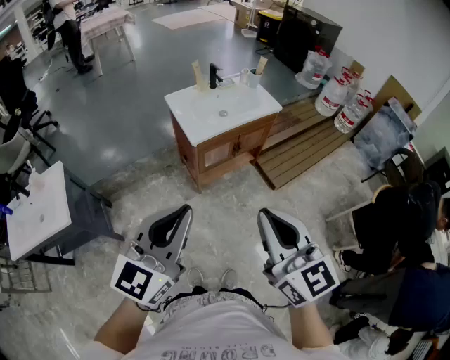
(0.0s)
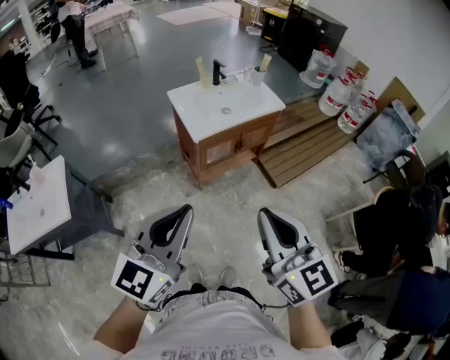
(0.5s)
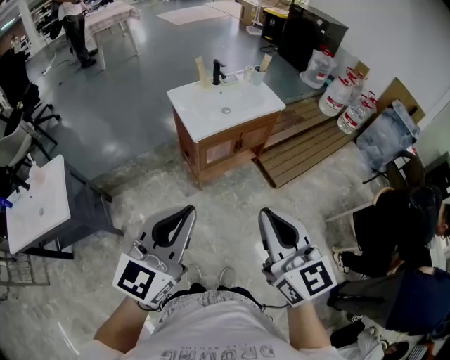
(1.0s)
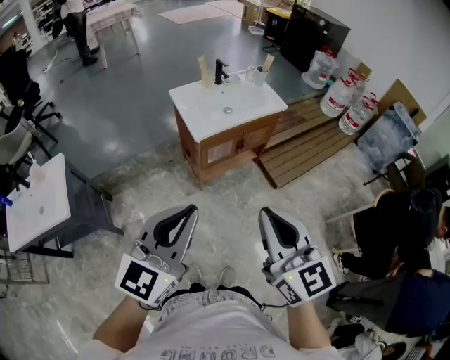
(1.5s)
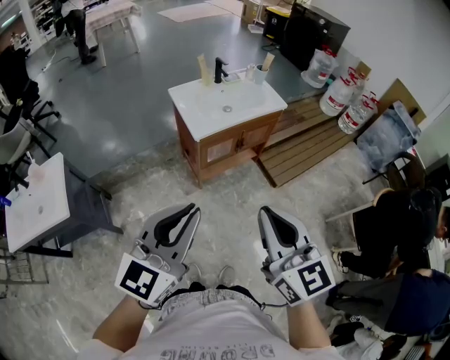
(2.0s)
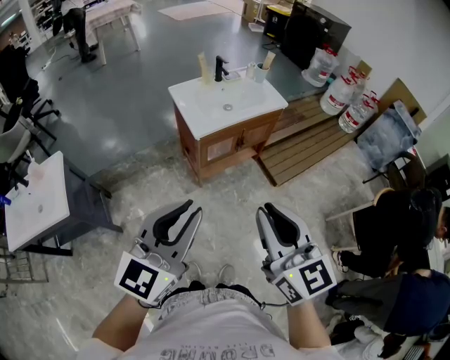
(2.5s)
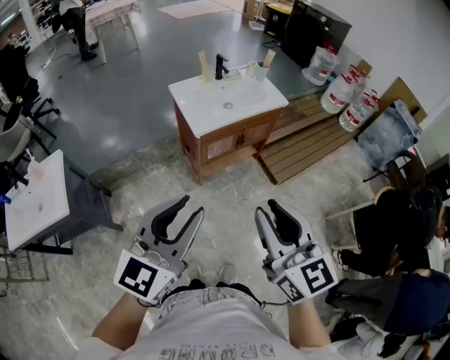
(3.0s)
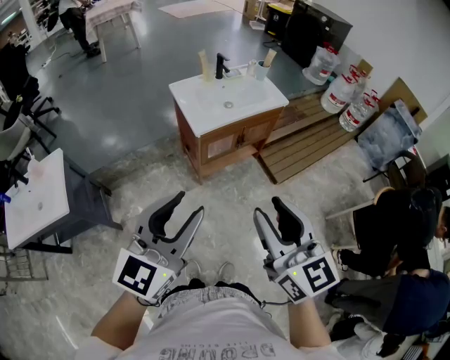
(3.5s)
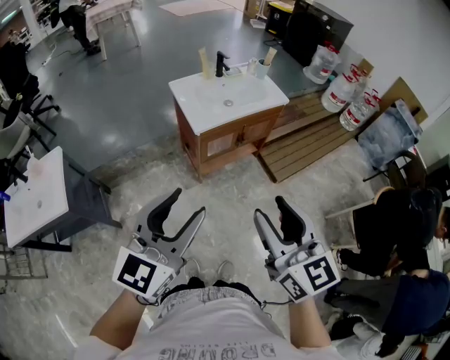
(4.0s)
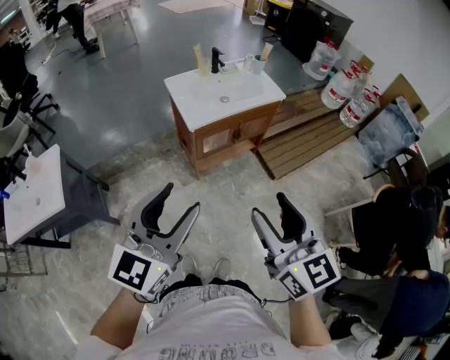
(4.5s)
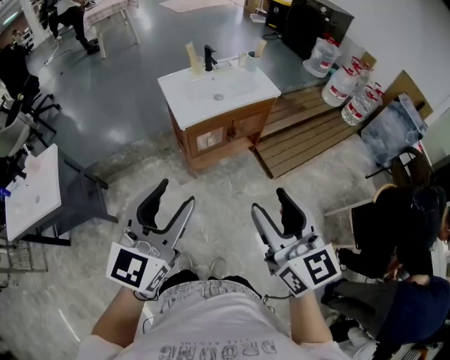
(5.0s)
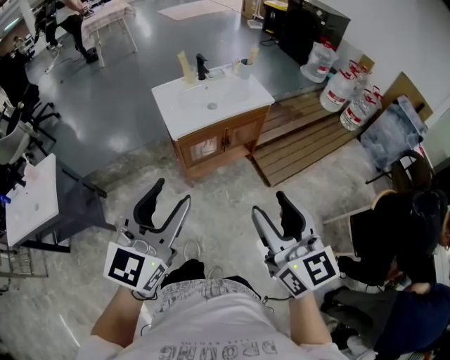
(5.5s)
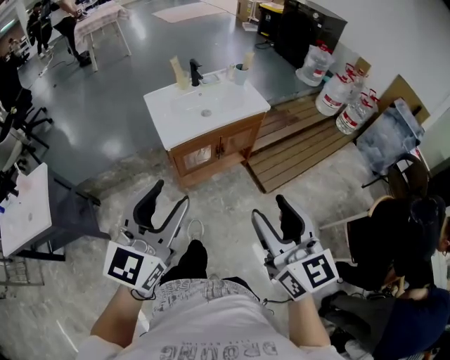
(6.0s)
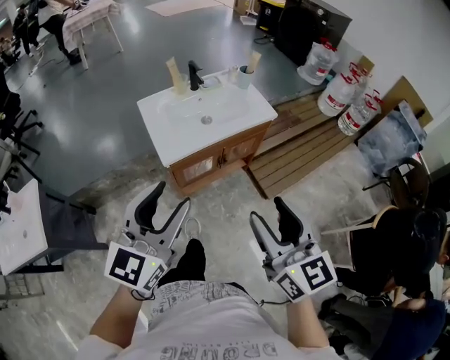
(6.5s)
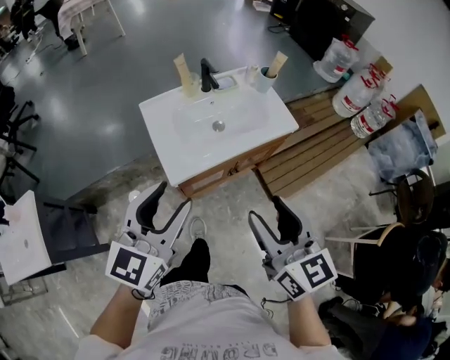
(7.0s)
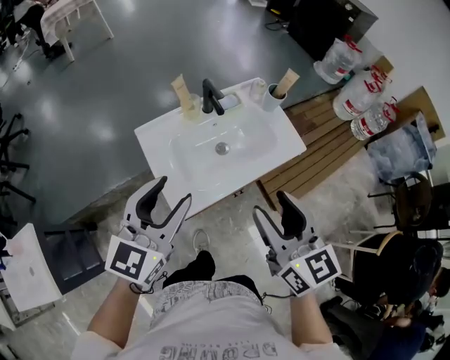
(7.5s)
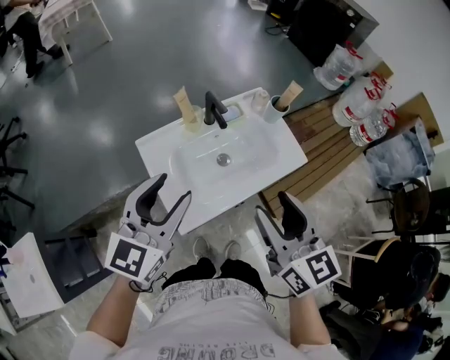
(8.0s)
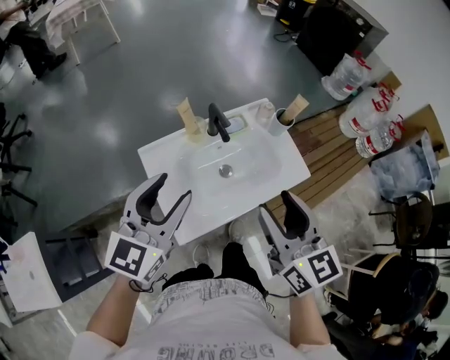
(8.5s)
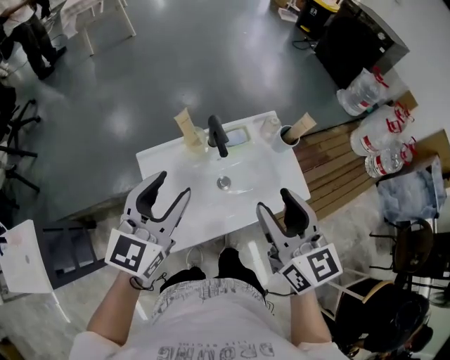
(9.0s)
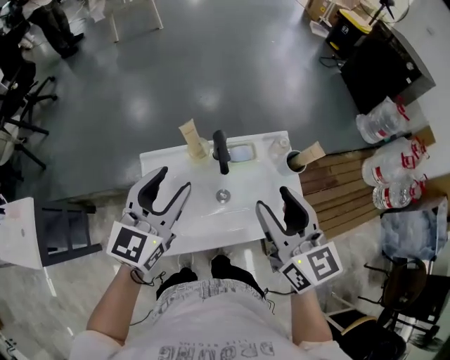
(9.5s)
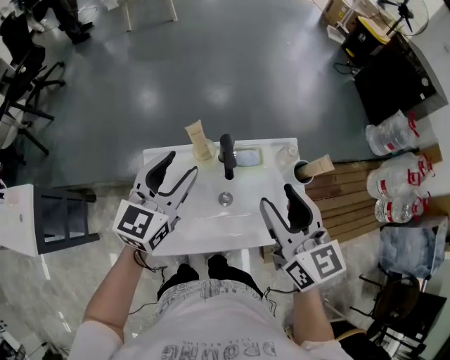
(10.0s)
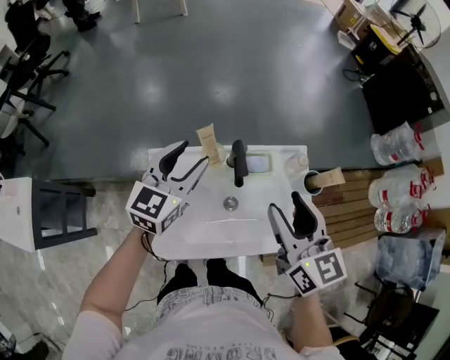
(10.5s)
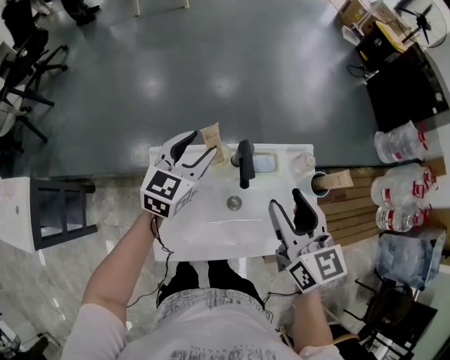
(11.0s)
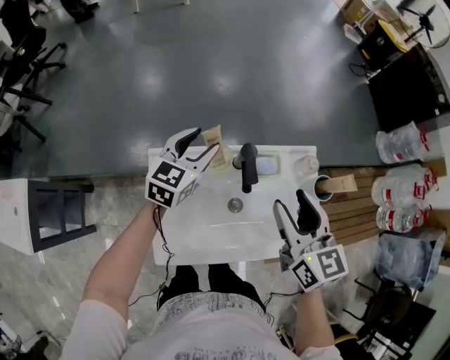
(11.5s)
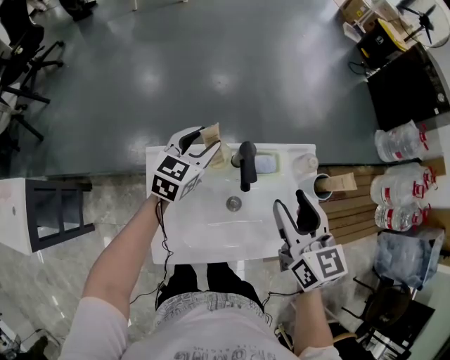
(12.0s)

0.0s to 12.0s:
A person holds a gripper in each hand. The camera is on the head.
0.0s to 2.0s: The grippers move only a little.
2.0s to 4.0s: The right gripper opens. Meanwhile the left gripper opens.
4.0s to 6.0s: Both grippers travel together to the right and forward, about 15 cm.
6.0s to 8.0s: The pair of grippers is taken forward, approximately 50 cm.
8.0s to 10.0s: Both grippers move forward, some 20 cm. The left gripper changes its angle by roughly 20 degrees. Meanwhile the right gripper turns by roughly 20 degrees.
10.0s to 12.0s: The right gripper goes roughly 10 cm downward, while the left gripper moves downward and forward, roughly 20 cm.

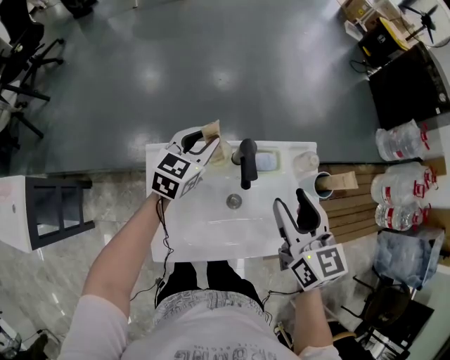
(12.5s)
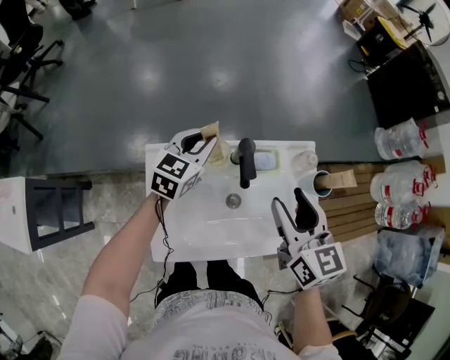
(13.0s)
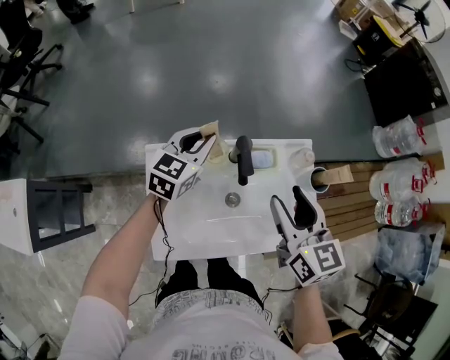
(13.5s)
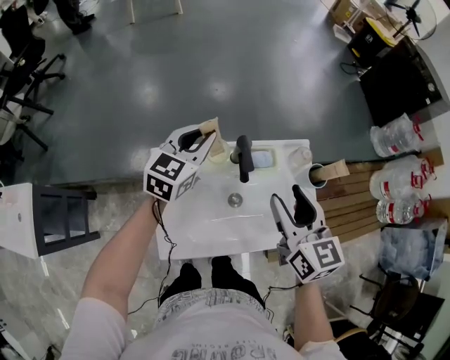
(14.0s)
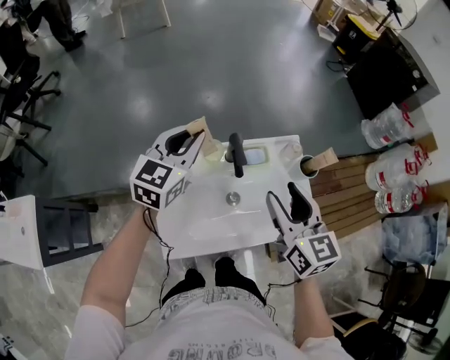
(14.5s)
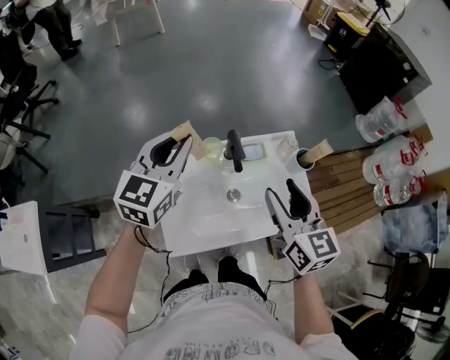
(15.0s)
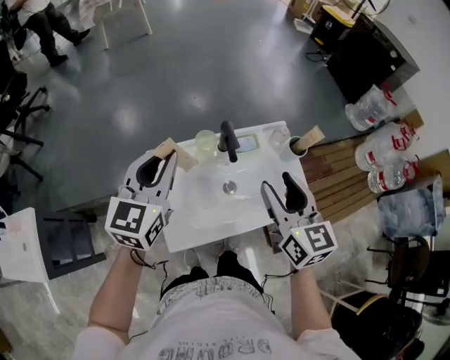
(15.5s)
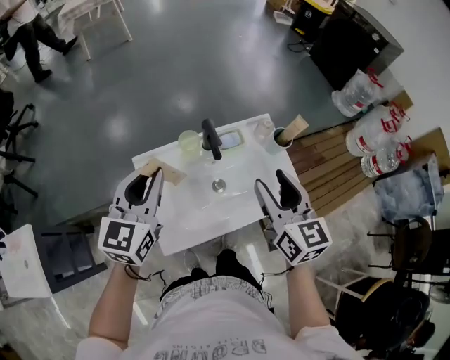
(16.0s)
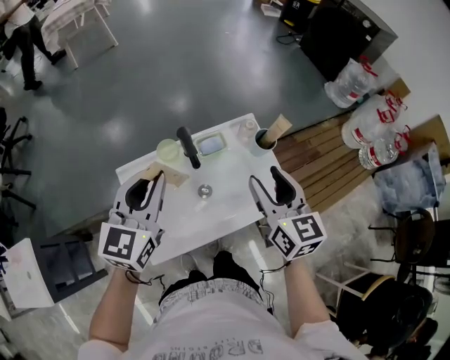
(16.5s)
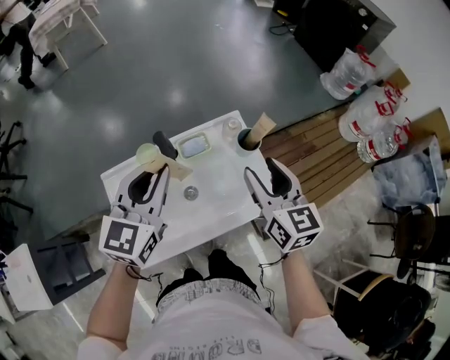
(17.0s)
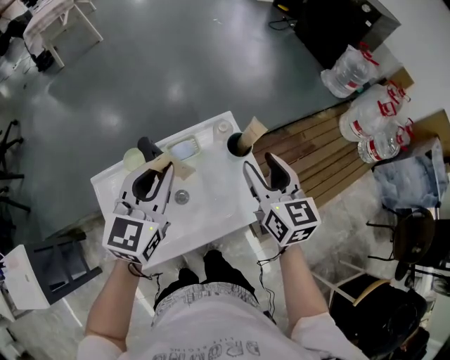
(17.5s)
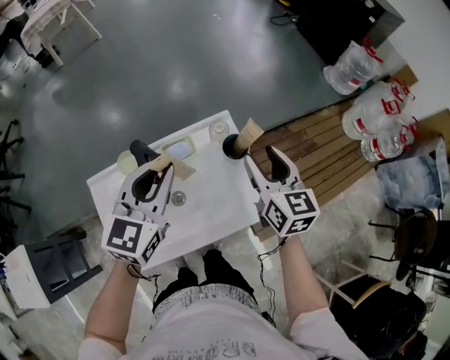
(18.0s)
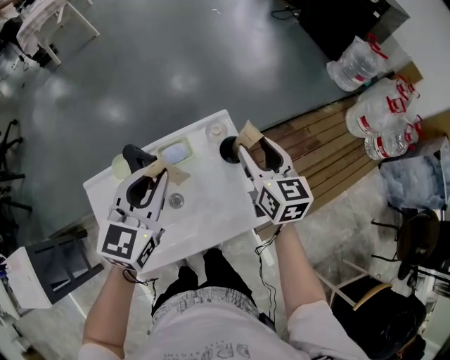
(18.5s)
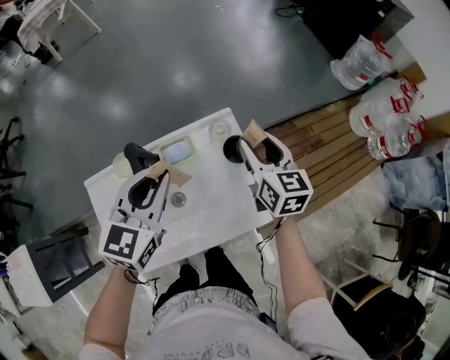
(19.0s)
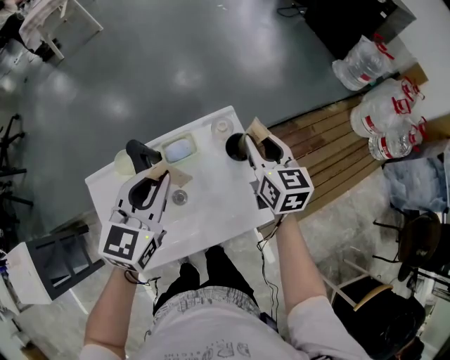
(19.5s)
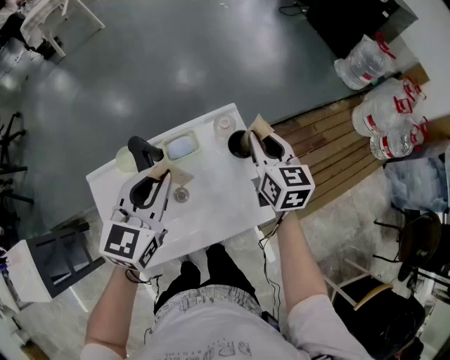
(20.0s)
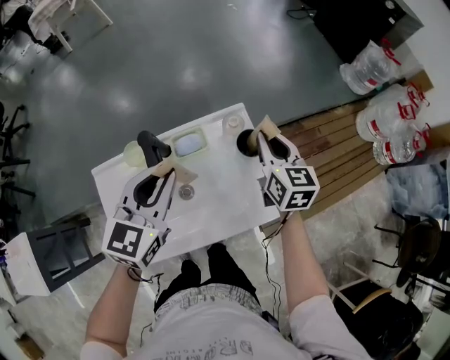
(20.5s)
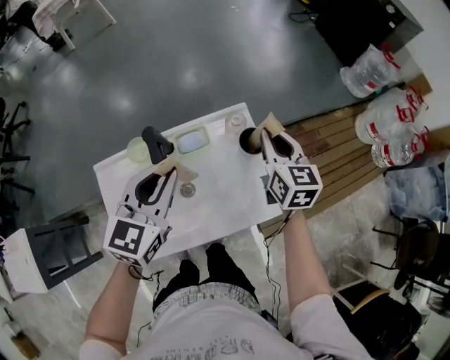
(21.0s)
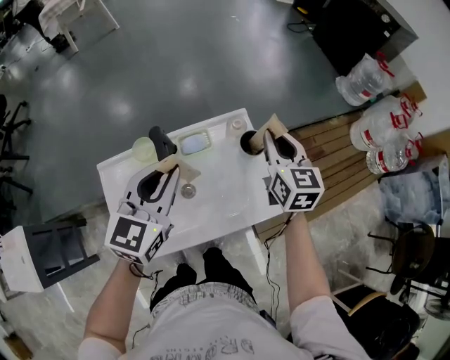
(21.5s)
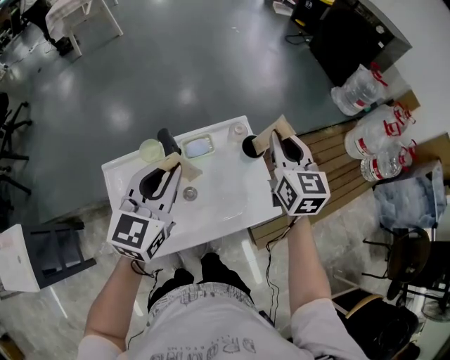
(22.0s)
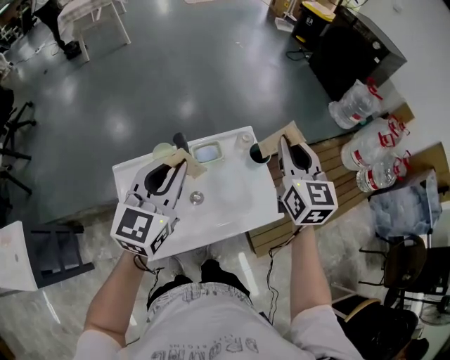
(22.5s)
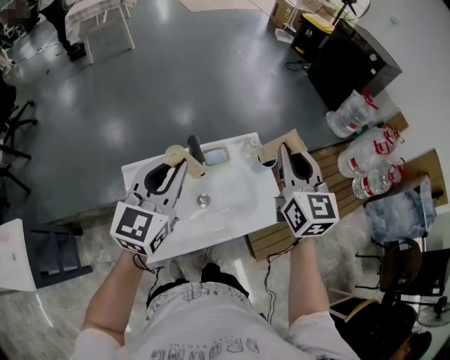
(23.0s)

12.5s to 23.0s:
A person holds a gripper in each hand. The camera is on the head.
12.5s to 14.5s: The left gripper moves upward, roughly 15 cm, while the right gripper travels backward by about 5 cm.
14.5s to 16.5s: The left gripper moves backward, about 10 cm; the right gripper heads to the right, covering about 10 cm.
16.5s to 19.0s: The right gripper travels forward, downward and to the right by roughly 25 cm, while the left gripper moves to the right, forward and downward, about 20 cm.
19.0s to 21.0s: The right gripper closes up.
21.0s to 23.0s: The left gripper is displaced upward, to the left and backward by roughly 15 cm; the right gripper shifts about 20 cm upward and backward.

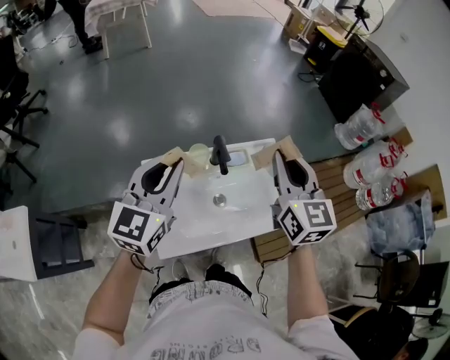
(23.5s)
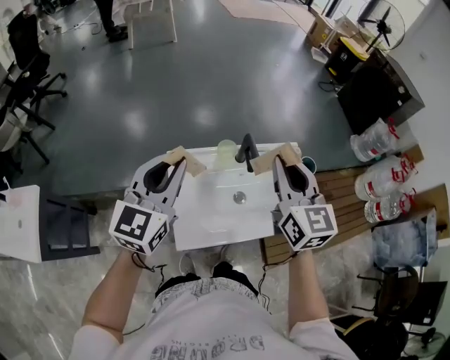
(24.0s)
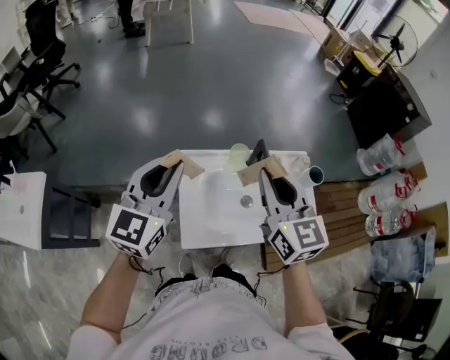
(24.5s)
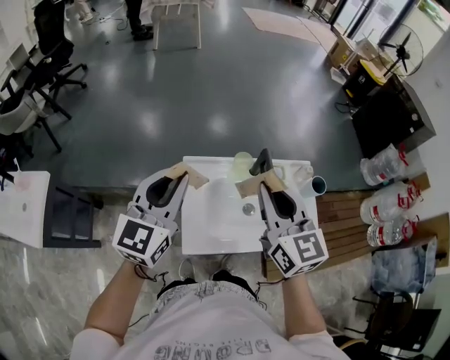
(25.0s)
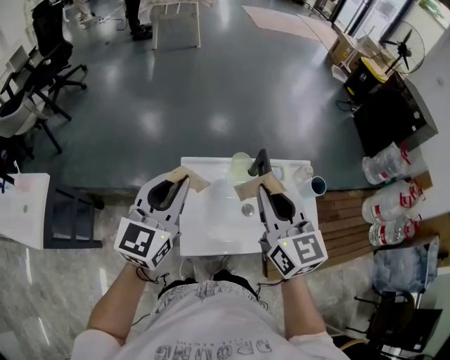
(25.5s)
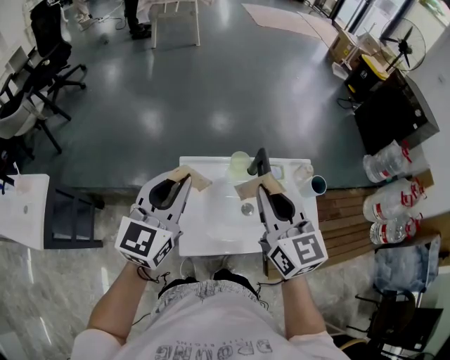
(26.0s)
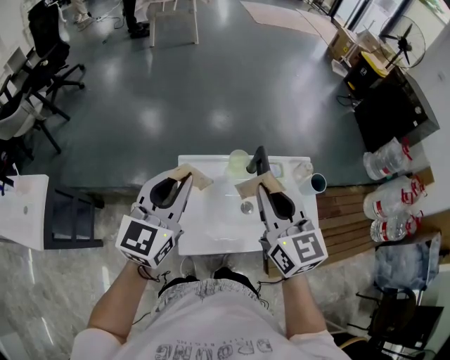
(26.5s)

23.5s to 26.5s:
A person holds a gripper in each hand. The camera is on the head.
23.5s to 25.0s: The left gripper shifts roughly 15 cm to the left and backward. The right gripper is displaced to the left by approximately 15 cm.
25.0s to 26.5s: The grippers move only a little.

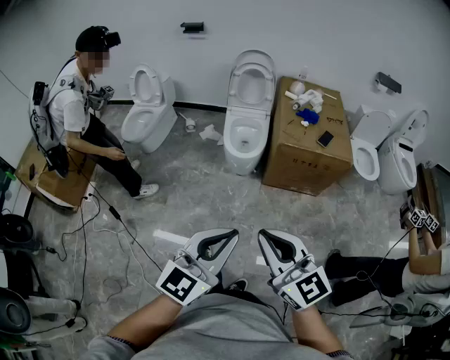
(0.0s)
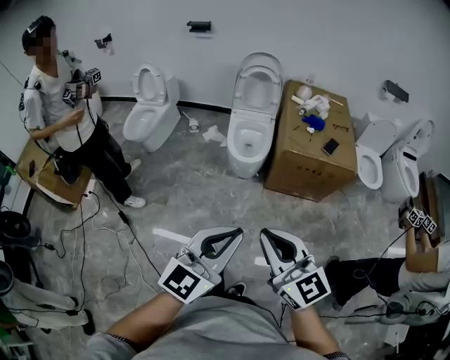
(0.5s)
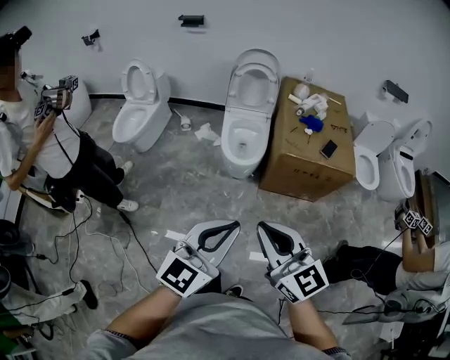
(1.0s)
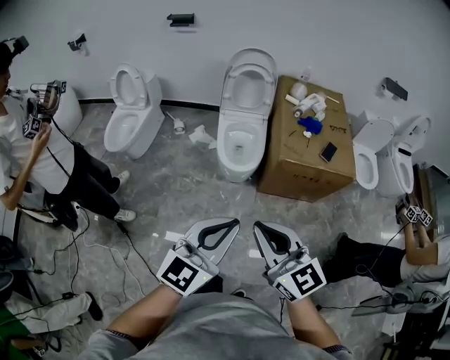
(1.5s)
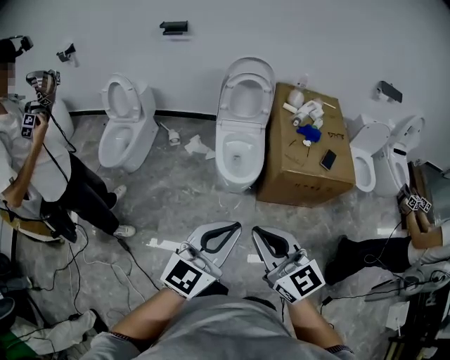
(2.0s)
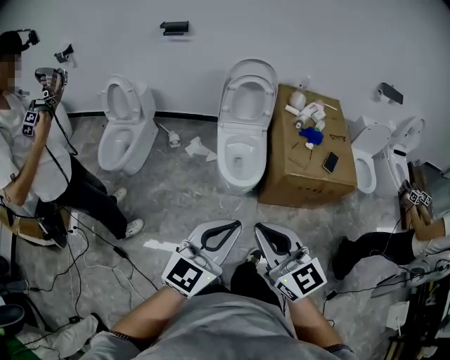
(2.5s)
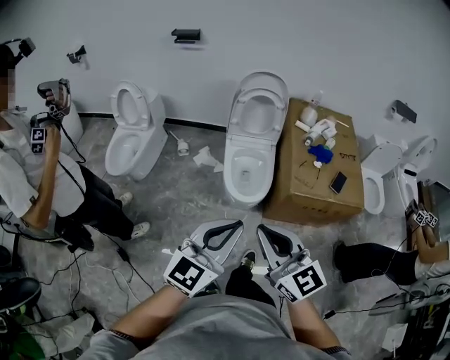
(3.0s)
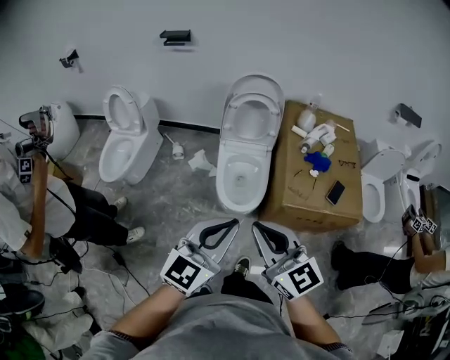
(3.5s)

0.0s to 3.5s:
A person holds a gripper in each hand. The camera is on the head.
0.0s to 2.0s: Both grippers move forward, some 25 cm.
2.0s to 3.5s: Both grippers travel together forward, about 20 cm.
